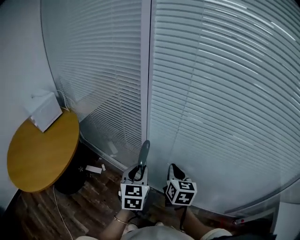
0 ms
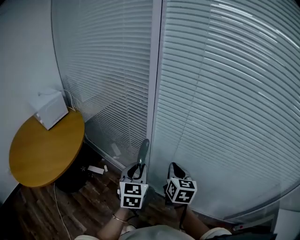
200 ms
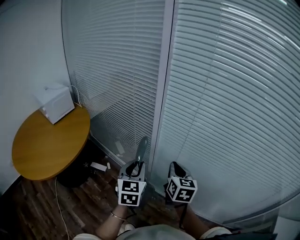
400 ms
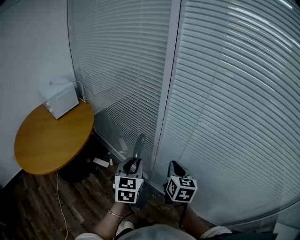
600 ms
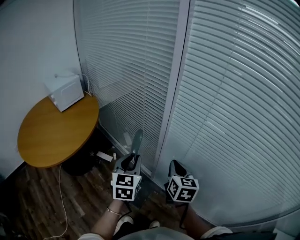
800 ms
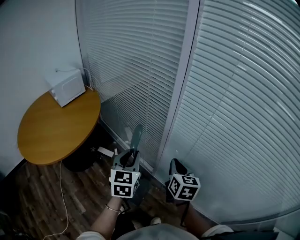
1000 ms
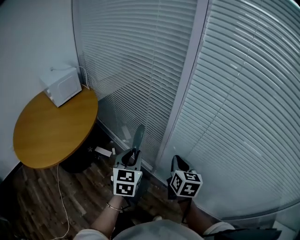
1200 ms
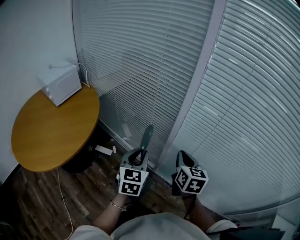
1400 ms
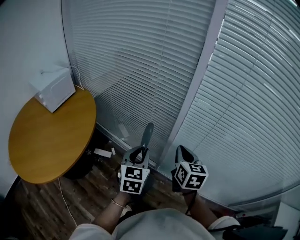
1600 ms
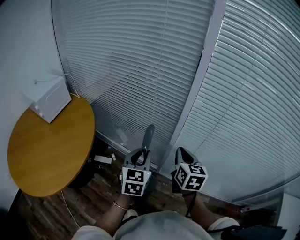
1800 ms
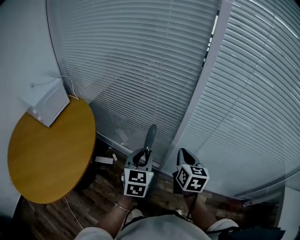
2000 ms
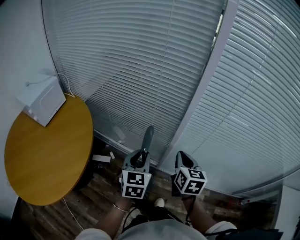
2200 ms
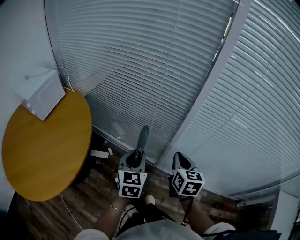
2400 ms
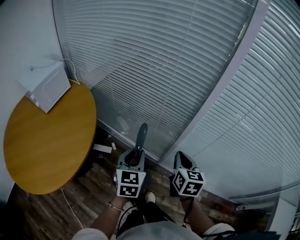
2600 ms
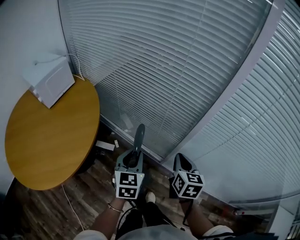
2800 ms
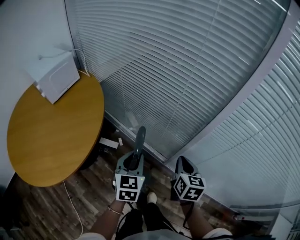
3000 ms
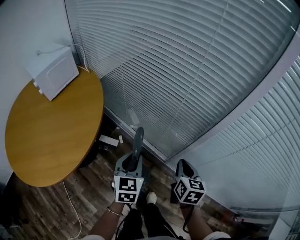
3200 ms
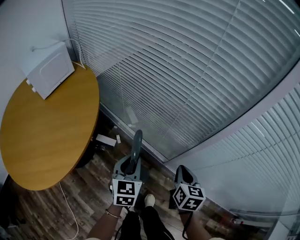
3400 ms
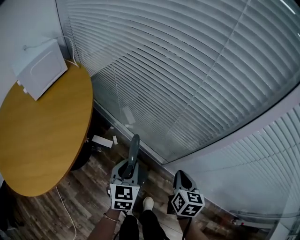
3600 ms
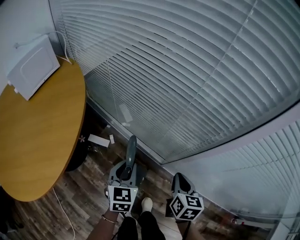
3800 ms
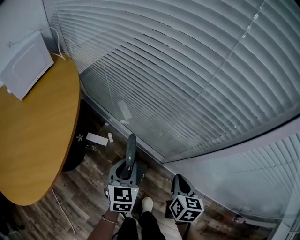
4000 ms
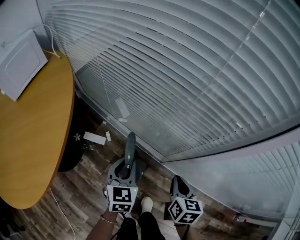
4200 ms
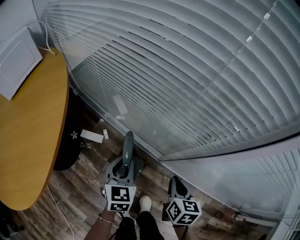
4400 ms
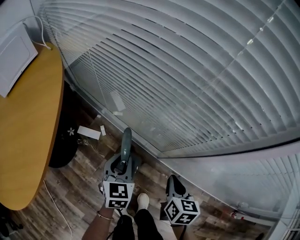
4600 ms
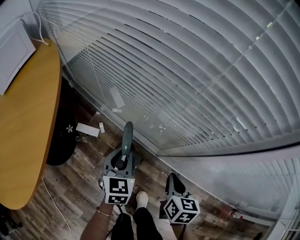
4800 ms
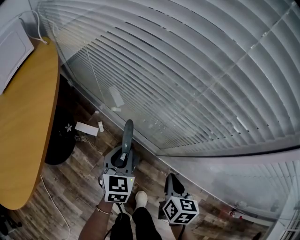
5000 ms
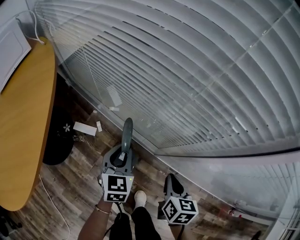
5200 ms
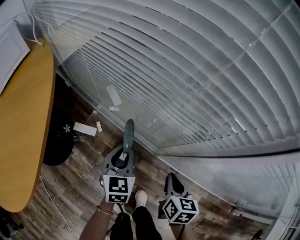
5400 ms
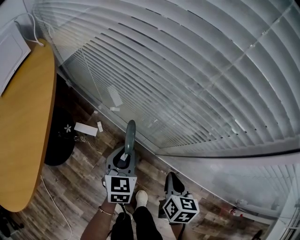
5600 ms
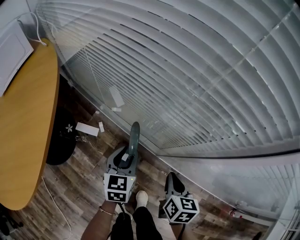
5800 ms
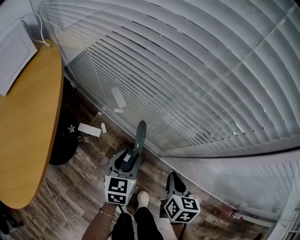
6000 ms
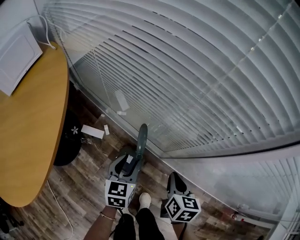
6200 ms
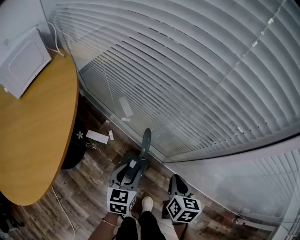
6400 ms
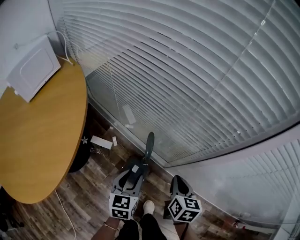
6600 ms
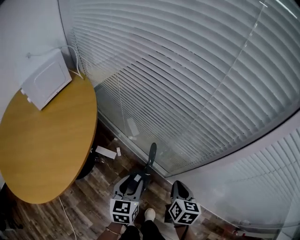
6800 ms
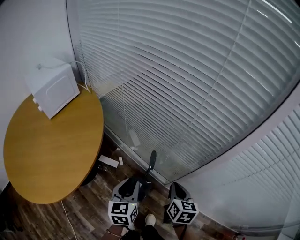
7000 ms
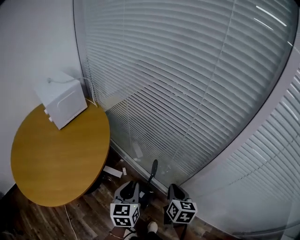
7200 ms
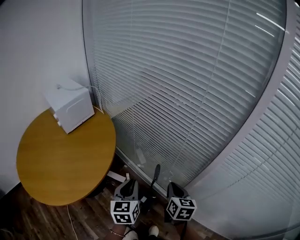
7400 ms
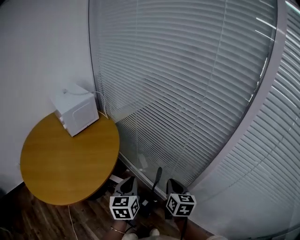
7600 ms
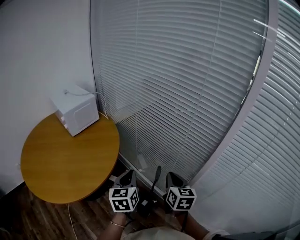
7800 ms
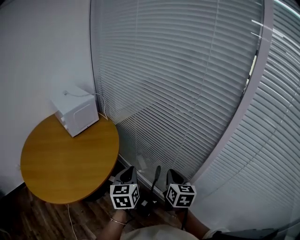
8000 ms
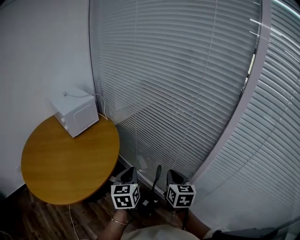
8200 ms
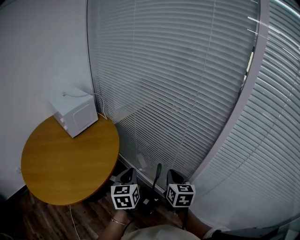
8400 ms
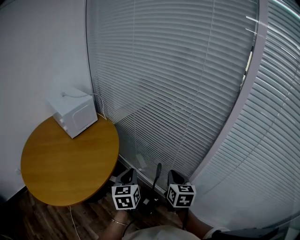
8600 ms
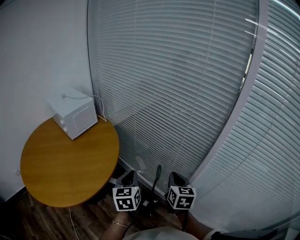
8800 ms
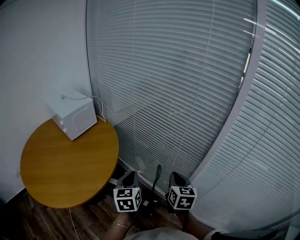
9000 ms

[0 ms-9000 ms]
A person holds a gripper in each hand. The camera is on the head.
0 ms to 1600 ms: Both grippers travel together to the left, about 15 cm.
1600 ms to 3000 ms: The left gripper heads to the left and downward, covering some 10 cm. Meanwhile the right gripper shifts about 10 cm downward and to the left.
3000 ms to 4400 ms: The right gripper is displaced downward by approximately 20 cm, while the left gripper is displaced downward and forward by some 20 cm.
4400 ms to 6000 ms: The grippers move only a little.
6000 ms to 7600 ms: The right gripper moves upward and to the left, some 30 cm, and turns by some 20 degrees. The left gripper travels upward by some 30 cm, changes its angle by about 30 degrees, and closes up.
7600 ms to 9000 ms: The grippers move only a little.

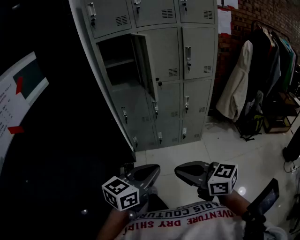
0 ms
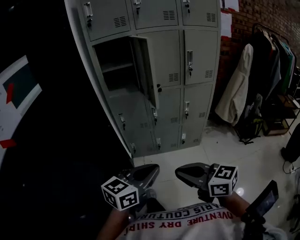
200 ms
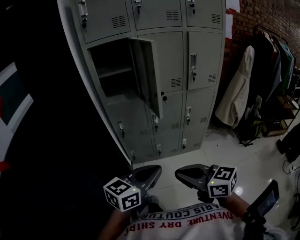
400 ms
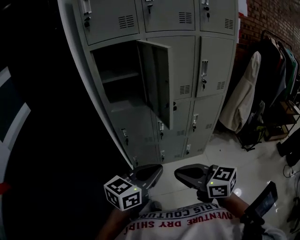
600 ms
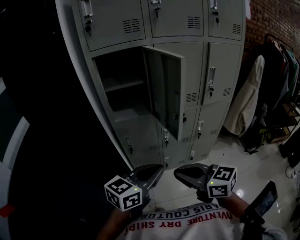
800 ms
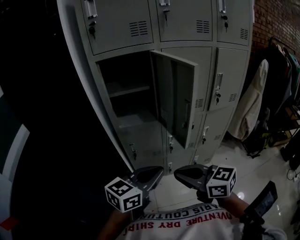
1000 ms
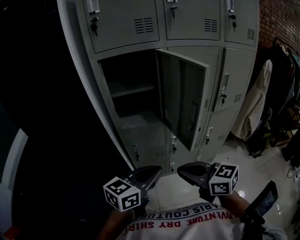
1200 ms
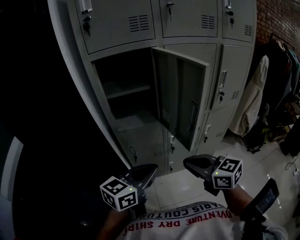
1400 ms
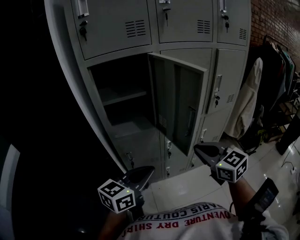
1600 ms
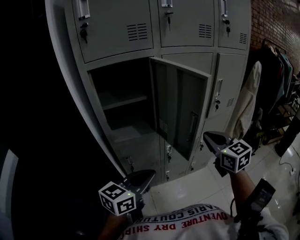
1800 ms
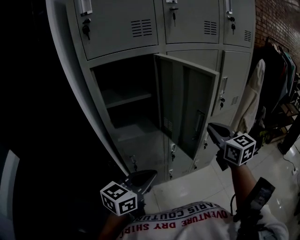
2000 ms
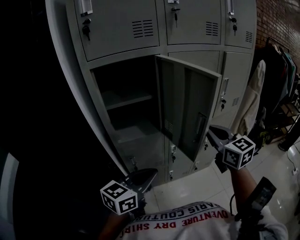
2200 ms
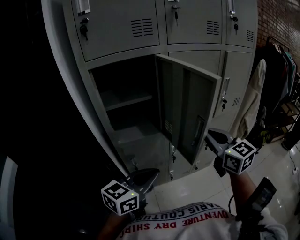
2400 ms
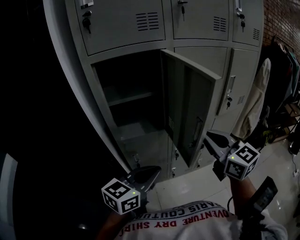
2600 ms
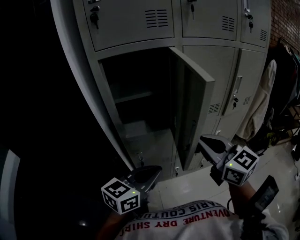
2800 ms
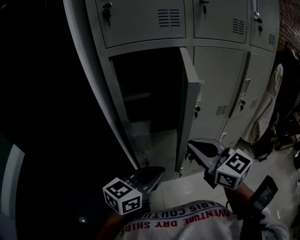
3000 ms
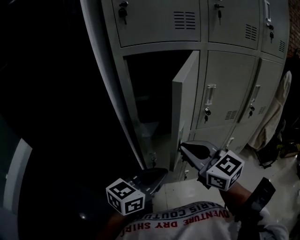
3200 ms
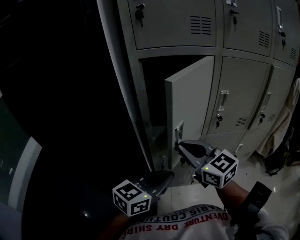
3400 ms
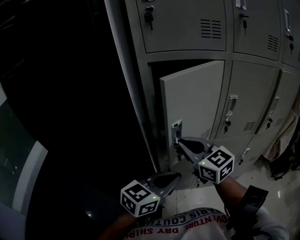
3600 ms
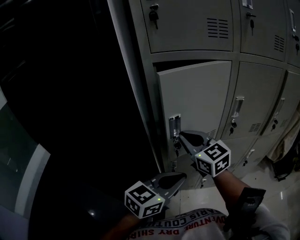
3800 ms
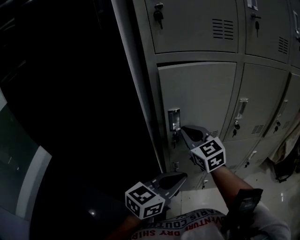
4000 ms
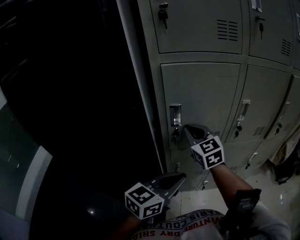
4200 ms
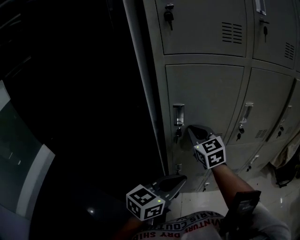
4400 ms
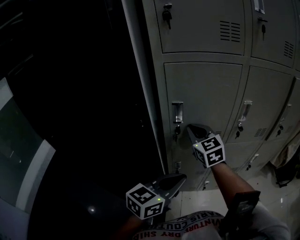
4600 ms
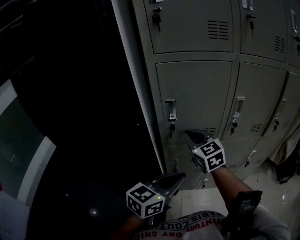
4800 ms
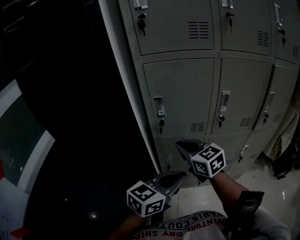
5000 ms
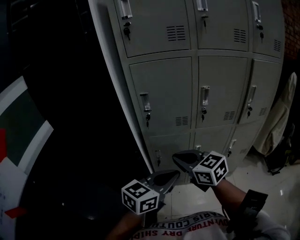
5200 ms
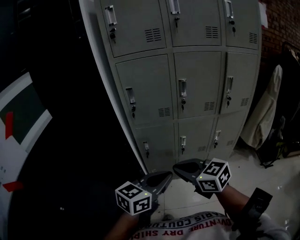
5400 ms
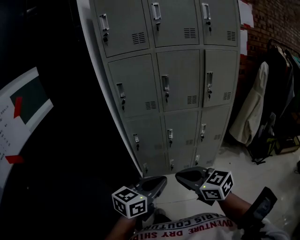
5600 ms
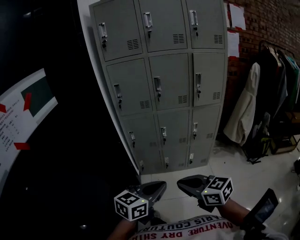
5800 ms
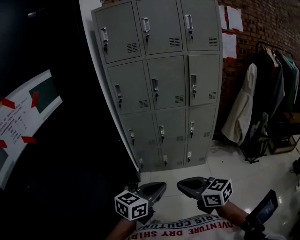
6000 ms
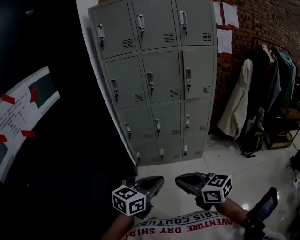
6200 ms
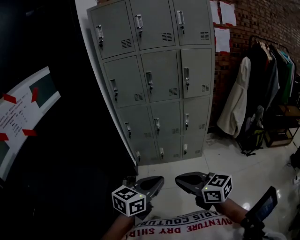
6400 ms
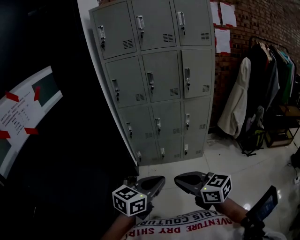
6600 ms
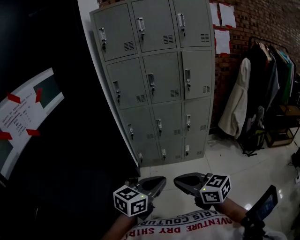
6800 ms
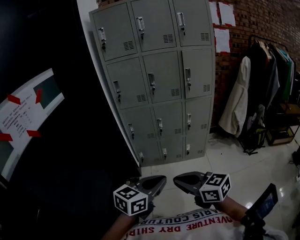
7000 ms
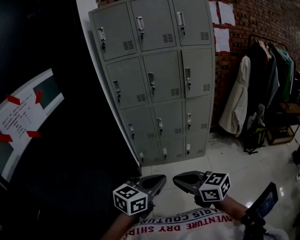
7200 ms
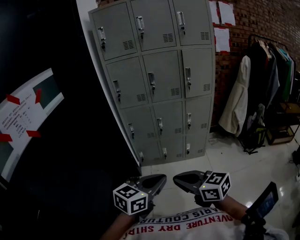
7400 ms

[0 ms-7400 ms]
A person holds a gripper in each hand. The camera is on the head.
0 ms to 1400 ms: The pair of grippers is taken forward, some 40 cm.
1400 ms to 3000 ms: The right gripper shifts approximately 15 cm to the left, upward and forward, while the left gripper travels to the left by approximately 5 cm.
3000 ms to 4400 ms: The right gripper travels forward and to the left by some 25 cm, while the left gripper goes approximately 5 cm to the left.
4400 ms to 6000 ms: The pair of grippers is taken backward and to the right, about 60 cm. The right gripper swivels some 30 degrees.
6000 ms to 7400 ms: The grippers both shift backward by approximately 5 cm.

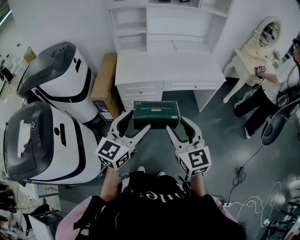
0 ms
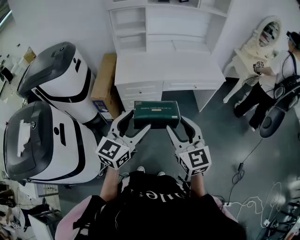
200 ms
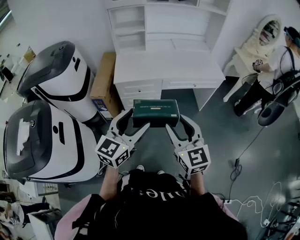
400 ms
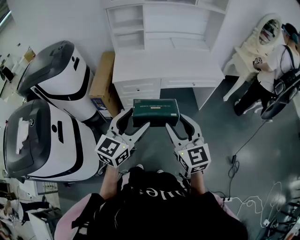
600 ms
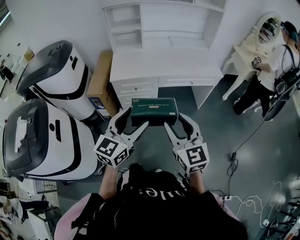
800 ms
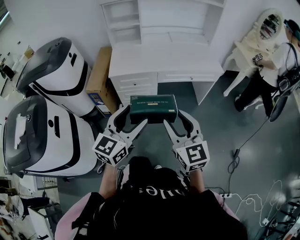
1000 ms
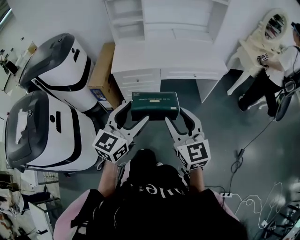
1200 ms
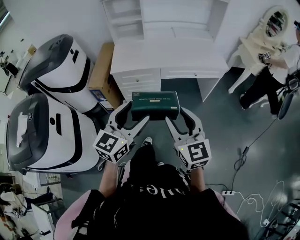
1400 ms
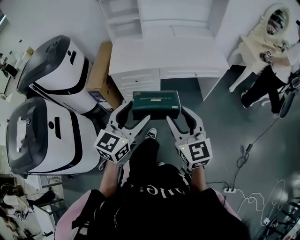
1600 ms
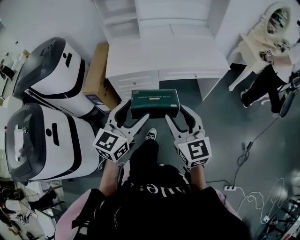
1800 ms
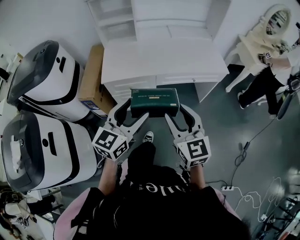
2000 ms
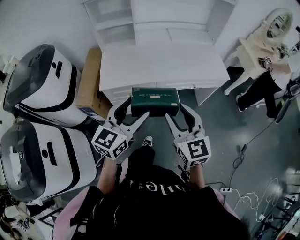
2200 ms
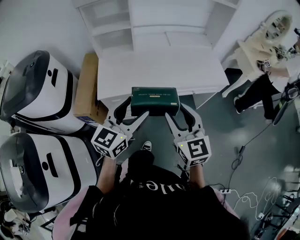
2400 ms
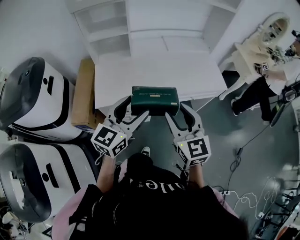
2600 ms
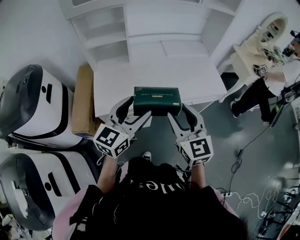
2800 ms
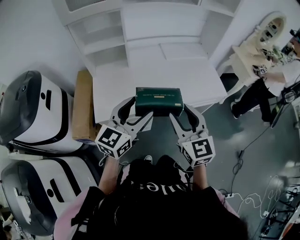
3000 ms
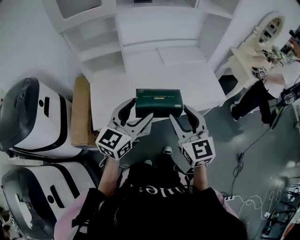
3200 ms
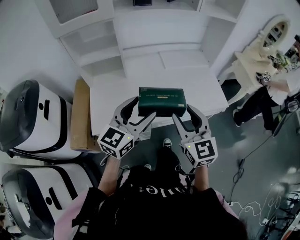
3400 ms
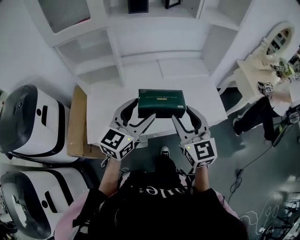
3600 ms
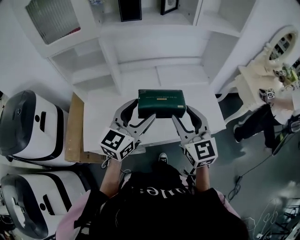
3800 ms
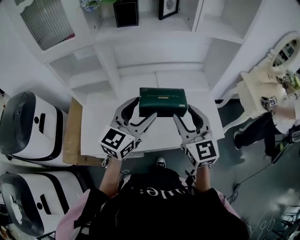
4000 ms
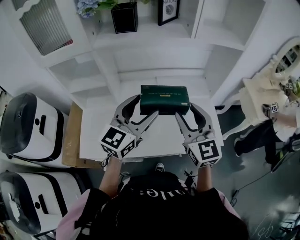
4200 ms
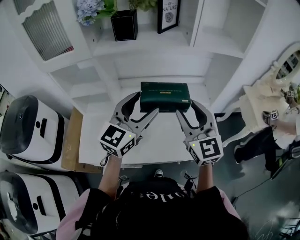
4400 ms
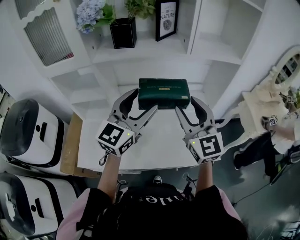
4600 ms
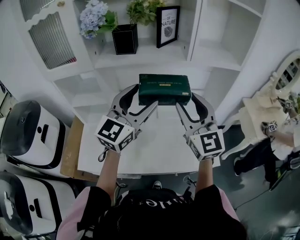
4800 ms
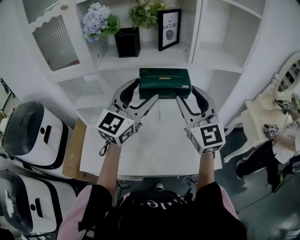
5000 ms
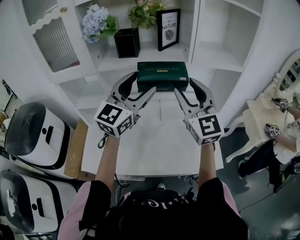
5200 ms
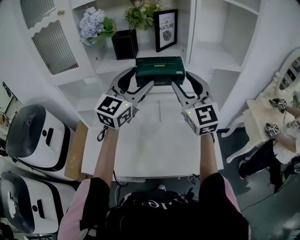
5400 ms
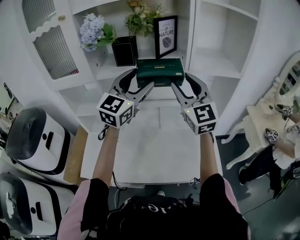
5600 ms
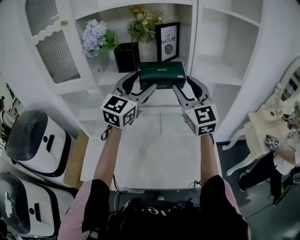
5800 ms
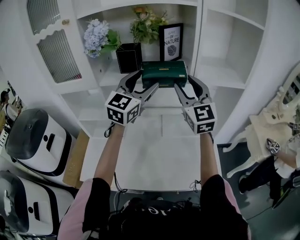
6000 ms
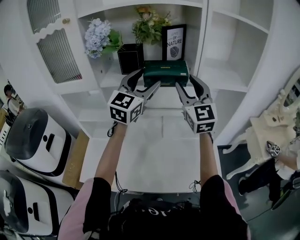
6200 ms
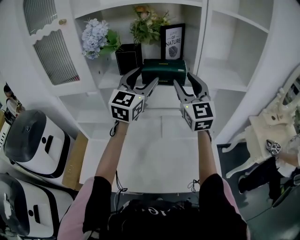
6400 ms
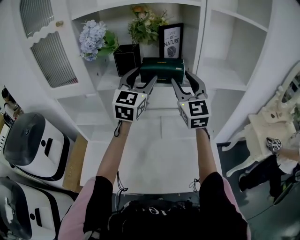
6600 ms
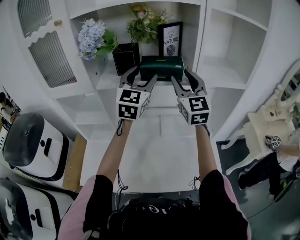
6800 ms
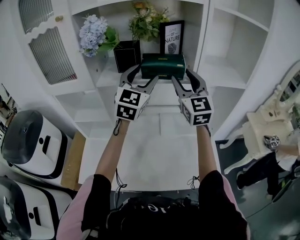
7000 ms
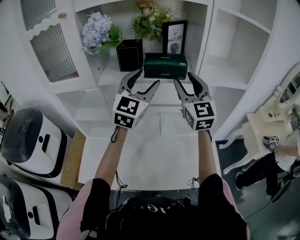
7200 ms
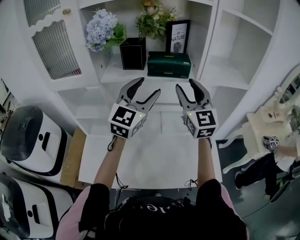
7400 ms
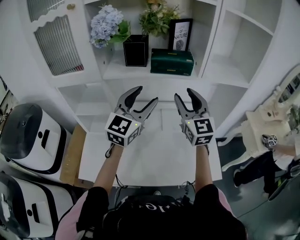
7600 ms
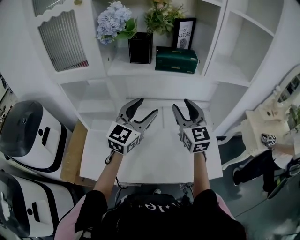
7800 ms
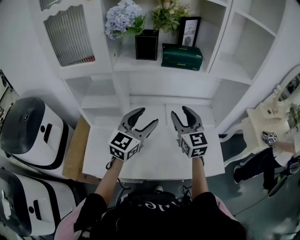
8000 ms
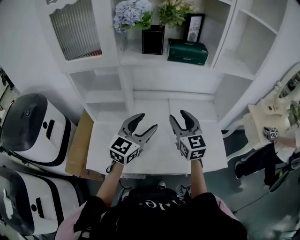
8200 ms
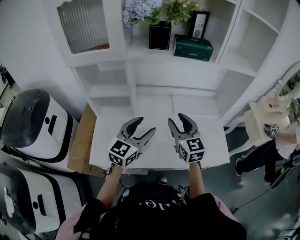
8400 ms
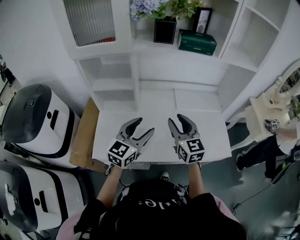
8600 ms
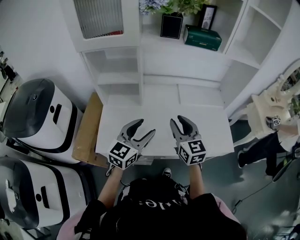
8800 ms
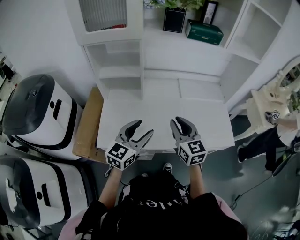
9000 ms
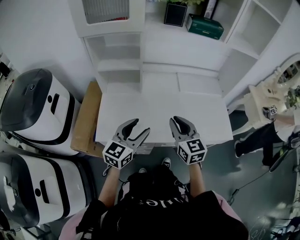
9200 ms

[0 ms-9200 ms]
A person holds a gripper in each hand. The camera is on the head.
0 ms to 1600 ms: Both grippers travel together to the right, roughly 5 cm.
1600 ms to 3000 ms: Both grippers move forward, about 35 cm.
3000 ms to 4600 ms: The right gripper shifts about 35 cm forward and to the right, and swivels some 20 degrees. The left gripper travels forward, to the right and upward by some 40 cm.
4600 ms to 6200 ms: The two grippers go about 20 cm forward and upward.
6200 ms to 7600 ms: The right gripper moves downward, some 5 cm, while the left gripper is displaced backward and downward by some 10 cm.
7600 ms to 9200 ms: The two grippers go approximately 40 cm backward, downward and to the left. The left gripper rotates some 20 degrees. Meanwhile the right gripper changes its angle by roughly 20 degrees, and closes up.
